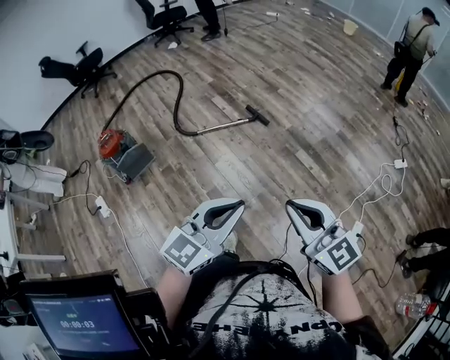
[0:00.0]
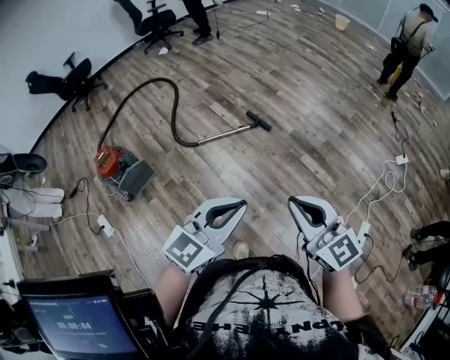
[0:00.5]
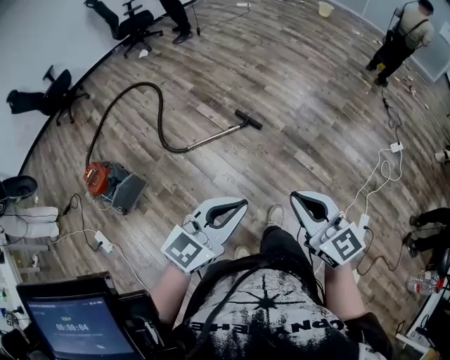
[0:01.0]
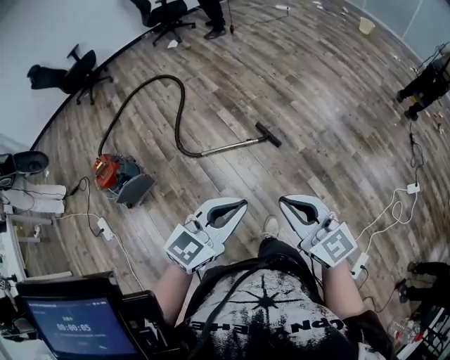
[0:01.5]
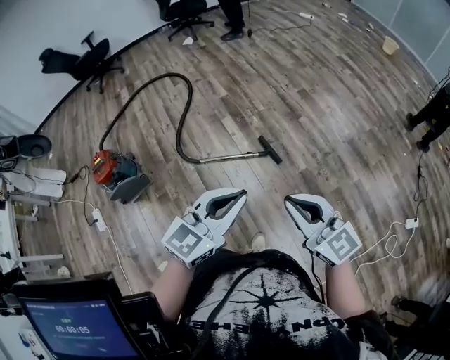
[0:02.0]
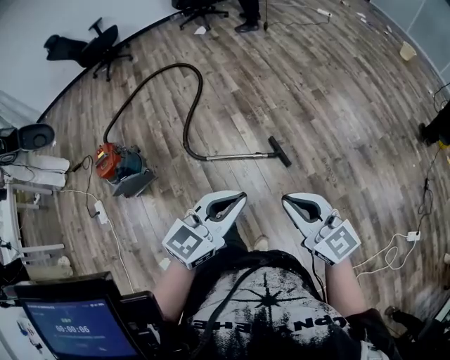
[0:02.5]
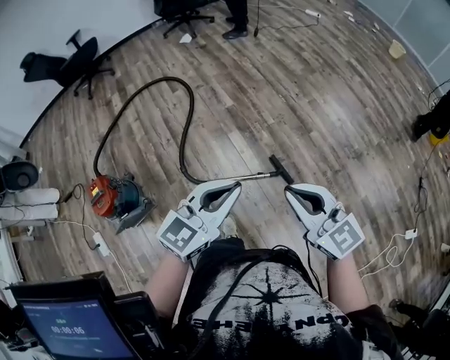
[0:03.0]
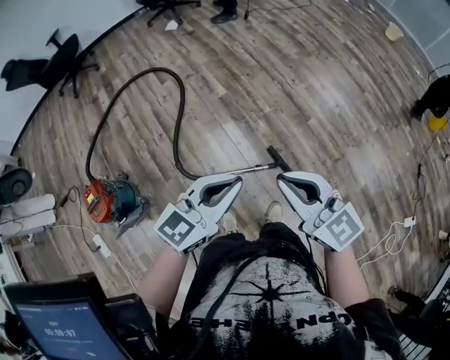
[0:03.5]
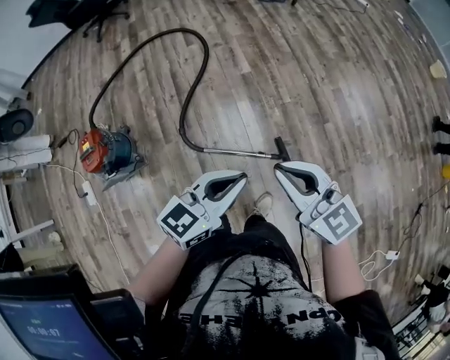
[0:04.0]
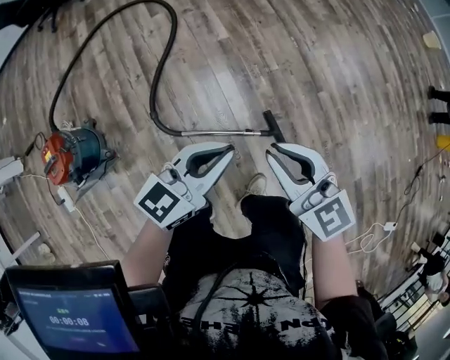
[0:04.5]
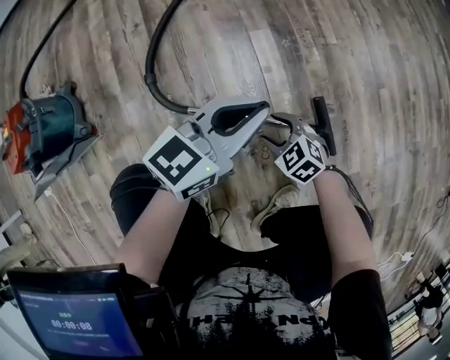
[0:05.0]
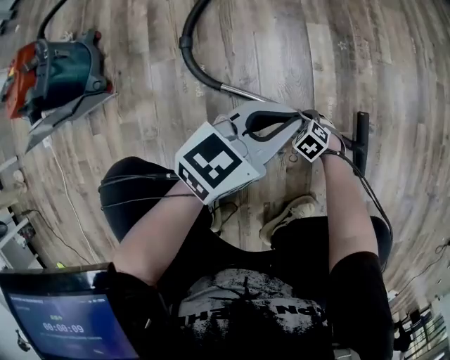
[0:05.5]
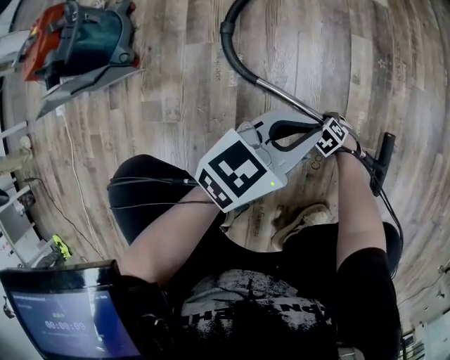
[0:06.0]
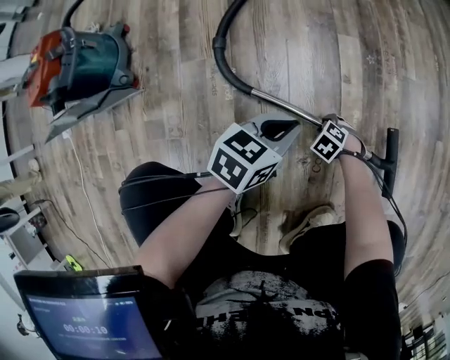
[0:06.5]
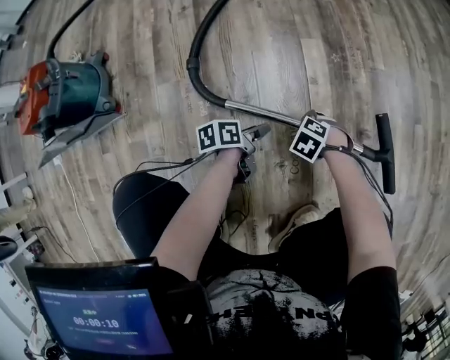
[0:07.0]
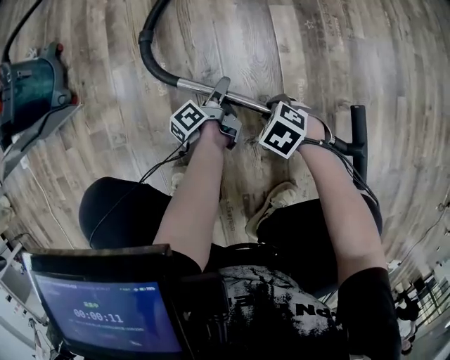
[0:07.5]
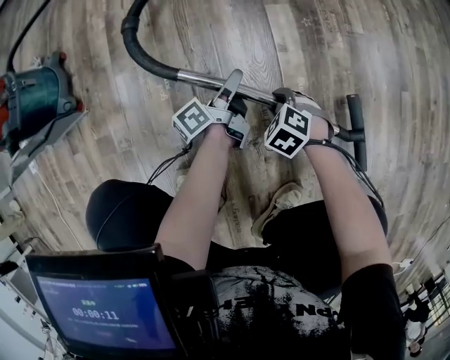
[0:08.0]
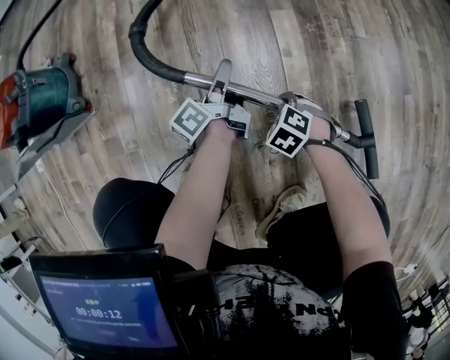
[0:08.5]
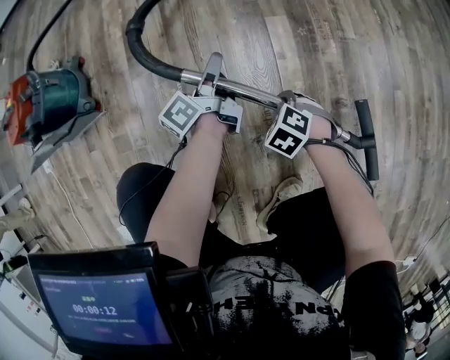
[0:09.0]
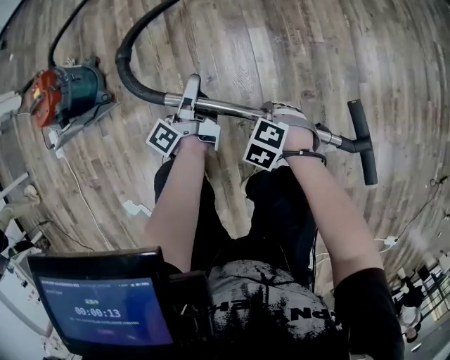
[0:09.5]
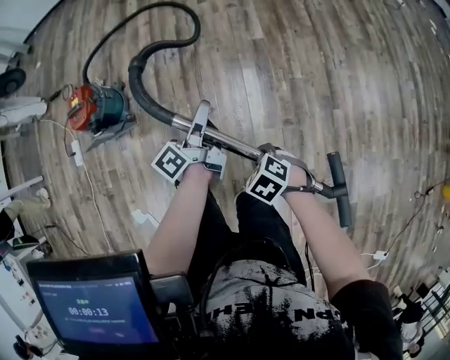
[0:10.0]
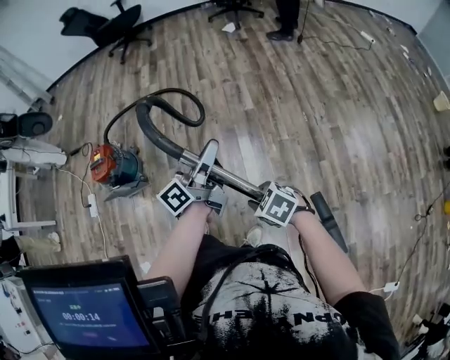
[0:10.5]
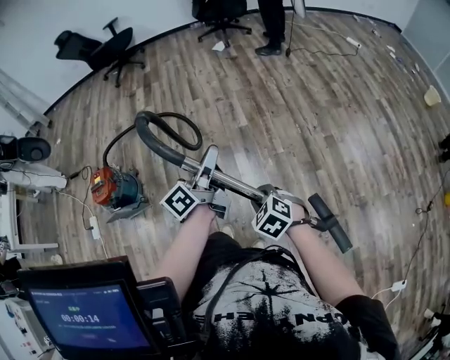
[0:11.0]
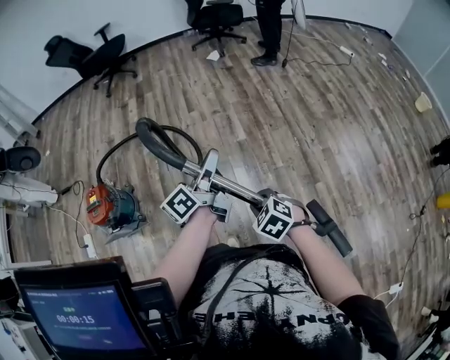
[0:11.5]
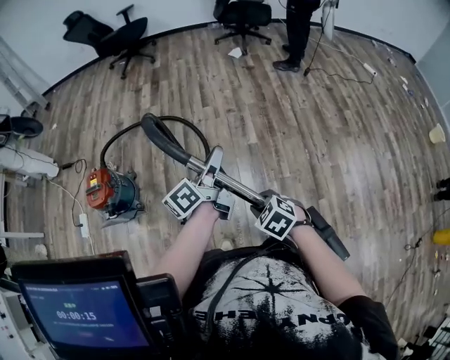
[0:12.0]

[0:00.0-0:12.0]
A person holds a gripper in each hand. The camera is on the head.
0:00.0 to 0:02.0: The two grippers travel together, forward, approximately 50 cm.
0:02.0 to 0:04.0: The two grippers go about 40 cm forward.
0:04.0 to 0:06.0: The left gripper heads downward, covering some 60 cm; the right gripper travels downward by approximately 1 m, points its fingers approximately 70 degrees further downward, and opens.
0:06.0 to 0:08.0: The right gripper heads upward, covering approximately 15 cm. The left gripper goes some 15 cm downward, rolls counterclockwise, seen from behind, by about 70 degrees, and opens up.
0:08.0 to 0:10.0: Both grippers travel together upward, some 60 cm. The right gripper closes up. The left gripper closes.
0:10.0 to 0:12.0: The right gripper travels forward and upward by about 20 cm; the left gripper travels upward and forward by roughly 25 cm.

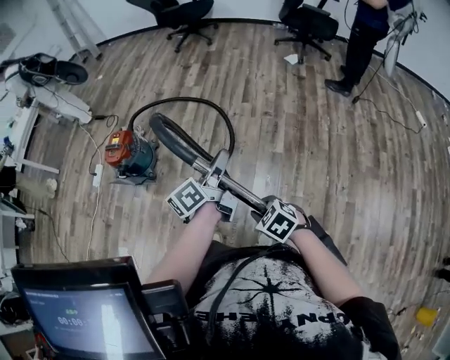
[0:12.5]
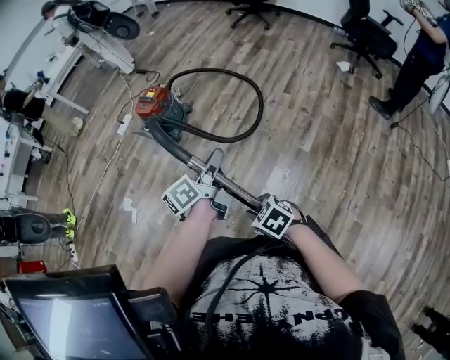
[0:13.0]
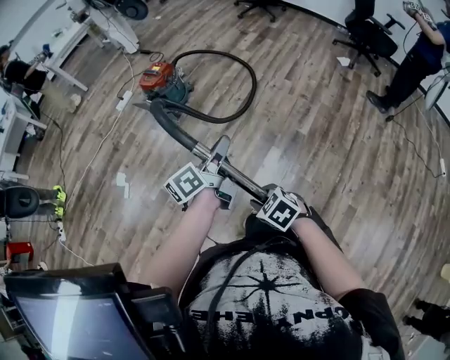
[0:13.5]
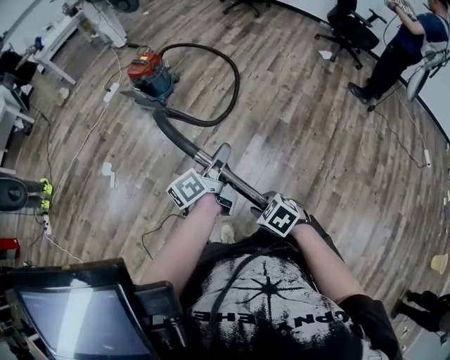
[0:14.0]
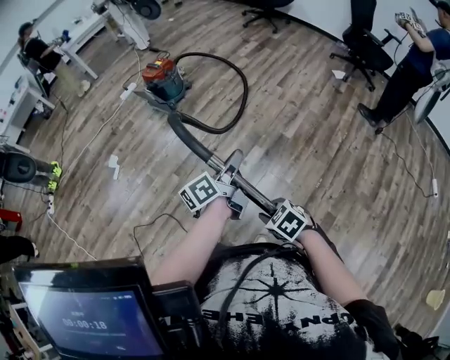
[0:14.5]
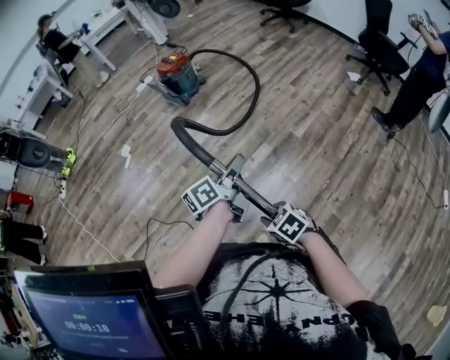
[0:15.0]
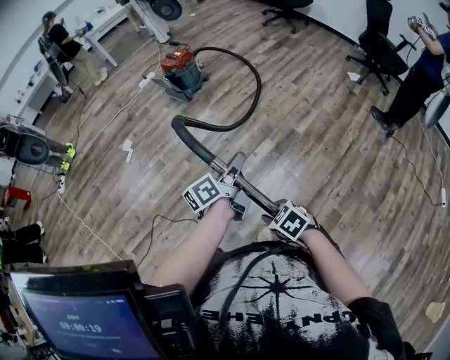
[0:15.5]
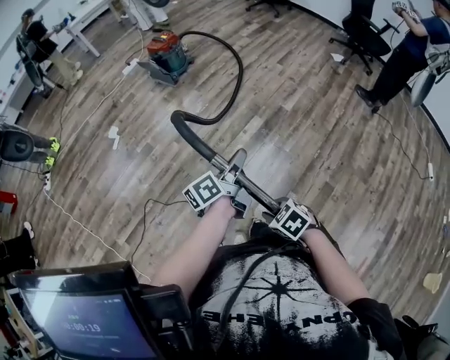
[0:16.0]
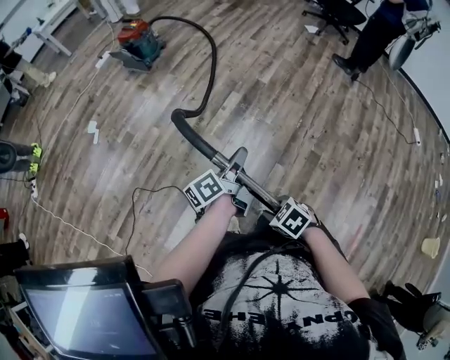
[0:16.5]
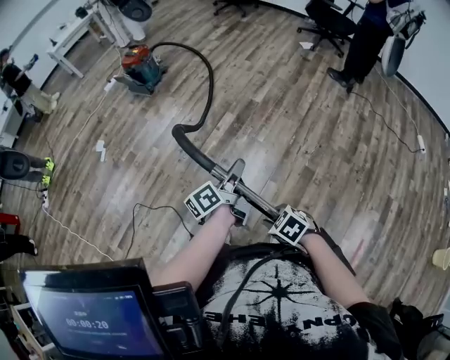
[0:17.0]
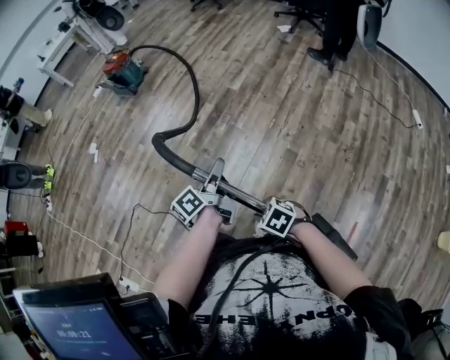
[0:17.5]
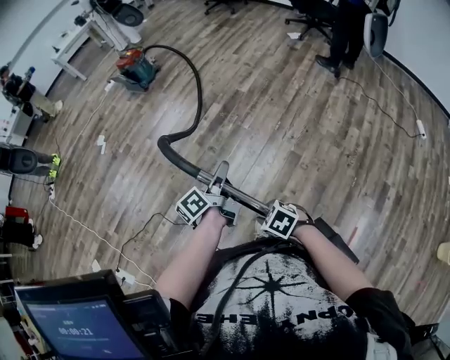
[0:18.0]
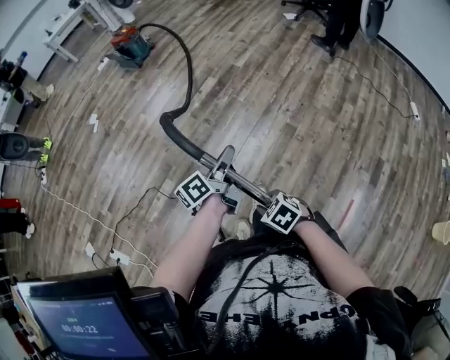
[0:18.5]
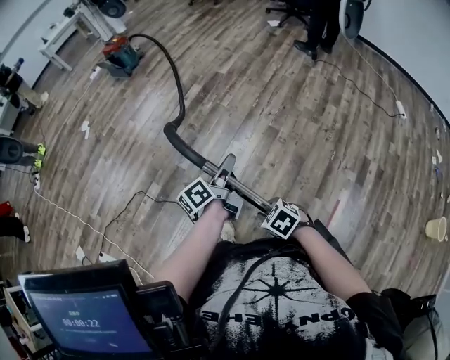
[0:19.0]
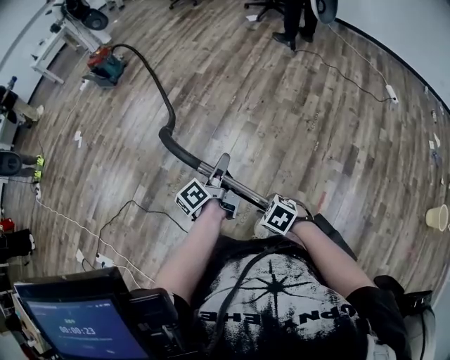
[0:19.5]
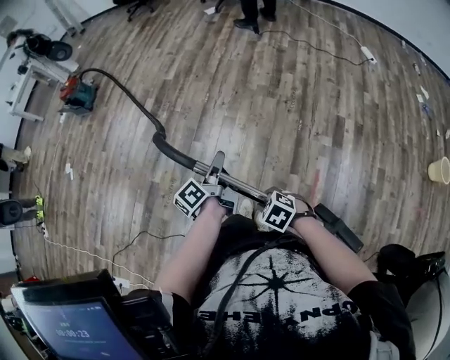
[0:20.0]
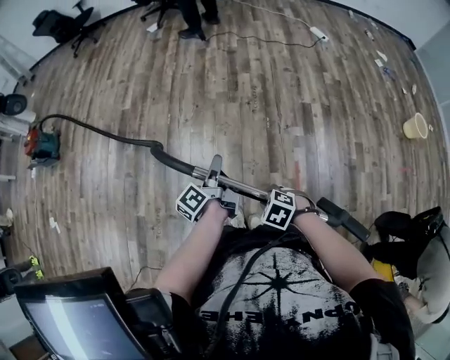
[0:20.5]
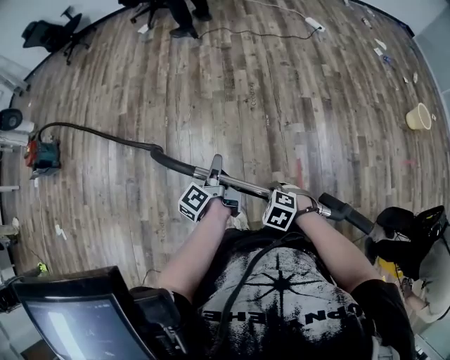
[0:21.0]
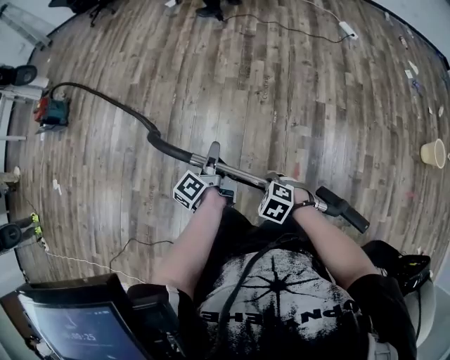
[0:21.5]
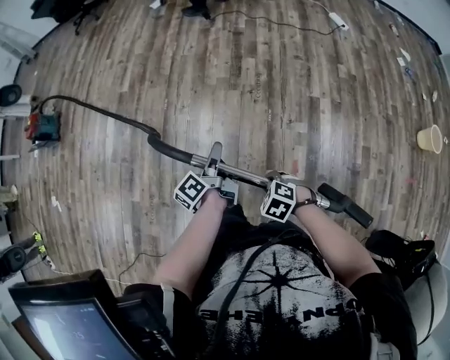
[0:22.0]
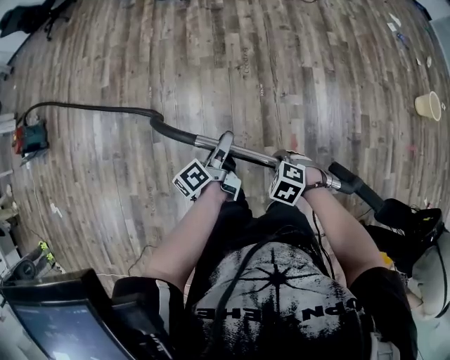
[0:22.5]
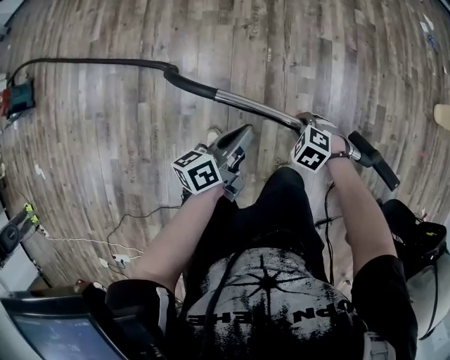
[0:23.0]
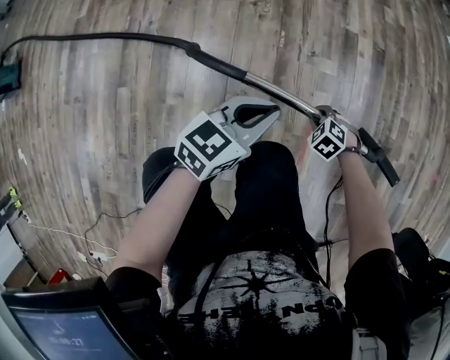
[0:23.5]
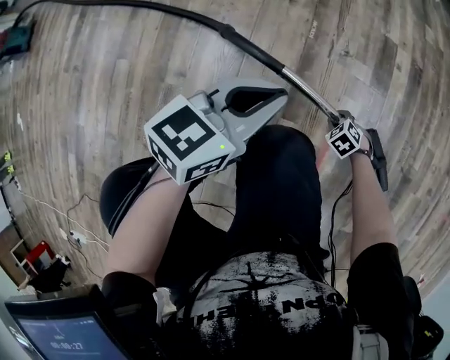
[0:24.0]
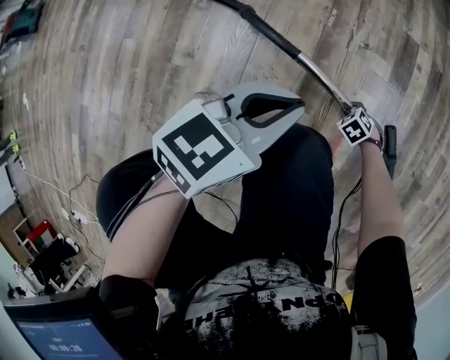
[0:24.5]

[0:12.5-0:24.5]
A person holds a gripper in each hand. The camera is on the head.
0:12.5 to 0:14.5: The right gripper shifts by roughly 35 cm, and rotates roughly 20 degrees. The left gripper changes place by about 35 cm, and swivels about 20 degrees.
0:14.5 to 0:16.5: The two grippers go approximately 30 cm backward.
0:16.5 to 0:18.5: Both grippers travel together backward, roughly 35 cm.
0:18.5 to 0:20.5: The right gripper shifts by some 40 cm, and turns by approximately 20 degrees, while the left gripper shifts by approximately 40 cm, and rotates about 20 degrees.
0:20.5 to 0:22.5: The right gripper ends up about 20 cm from where it was. The left gripper shifts by some 20 cm, and opens up.
0:22.5 to 0:24.5: The left gripper goes roughly 35 cm downward, twists roughly 60 degrees clockwise, seen from behind, and closes its fingers; the right gripper shifts some 60 cm downward.

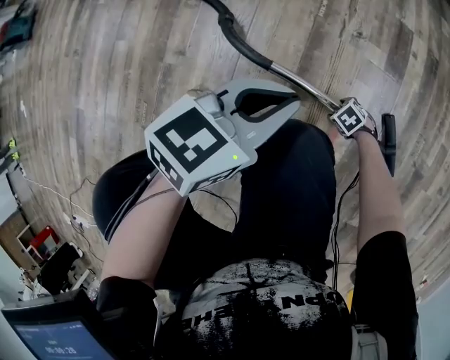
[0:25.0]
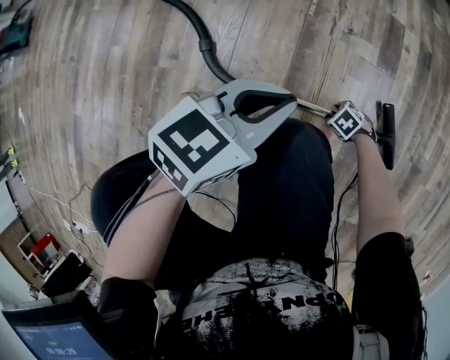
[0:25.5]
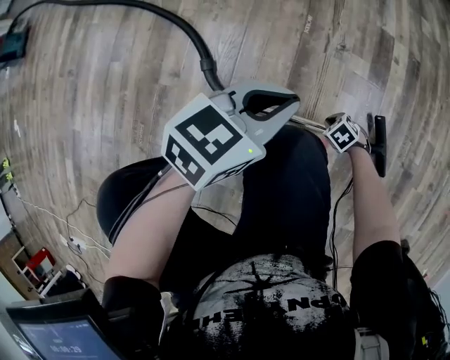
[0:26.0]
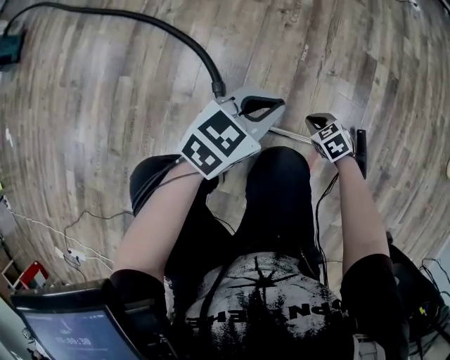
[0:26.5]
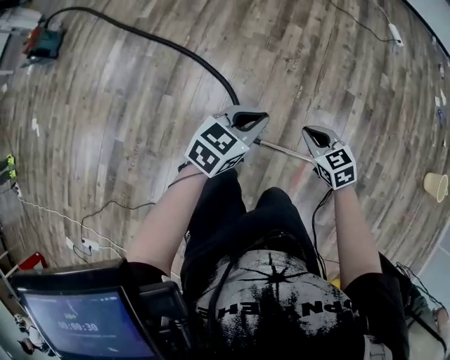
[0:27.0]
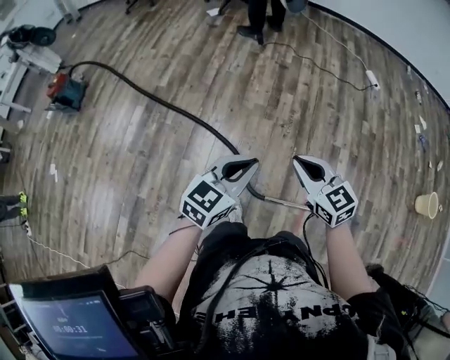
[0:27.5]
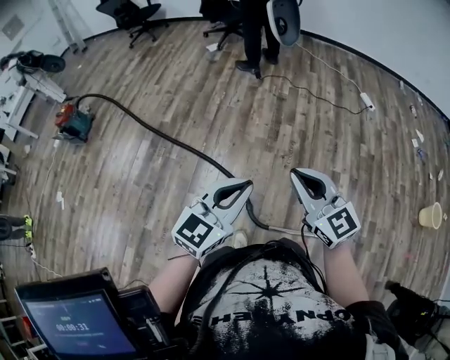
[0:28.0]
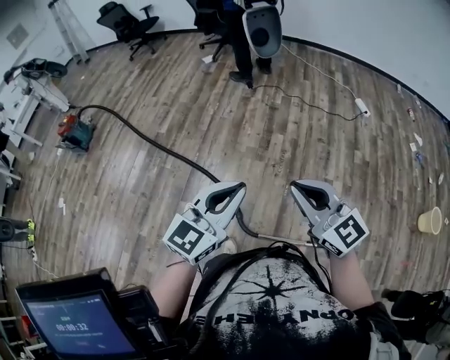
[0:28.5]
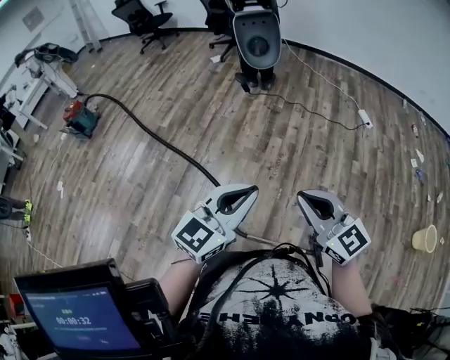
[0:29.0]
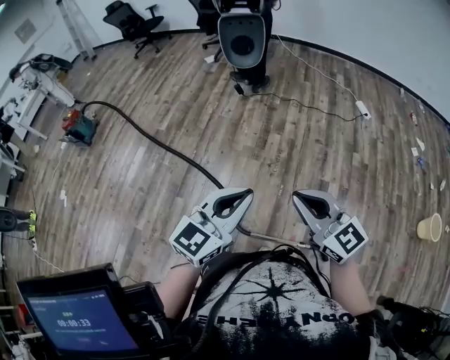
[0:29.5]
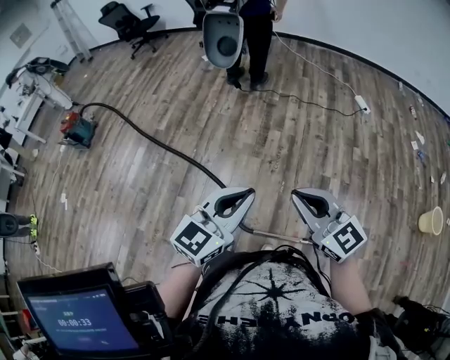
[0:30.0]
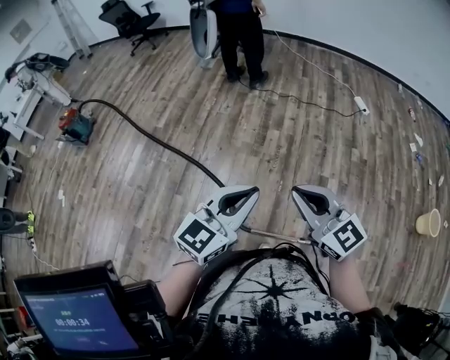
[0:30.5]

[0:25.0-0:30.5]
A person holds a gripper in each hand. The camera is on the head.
0:25.0 to 0:27.0: The right gripper travels upward by approximately 60 cm, points its fingers roughly 40 degrees further upward, and closes, while the left gripper shifts about 30 cm upward.
0:27.0 to 0:28.5: Both grippers move upward, some 40 cm. The right gripper tilts its fingers approximately 40 degrees upward; the left gripper swivels approximately 30 degrees.
0:28.5 to 0:30.5: The two grippers go approximately 5 cm to the right.
